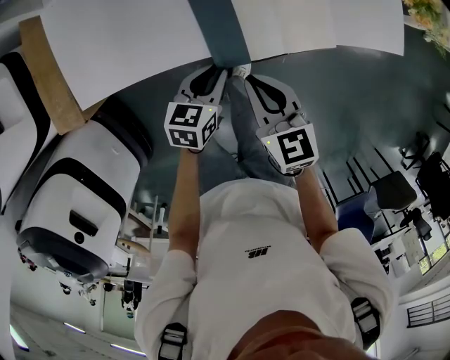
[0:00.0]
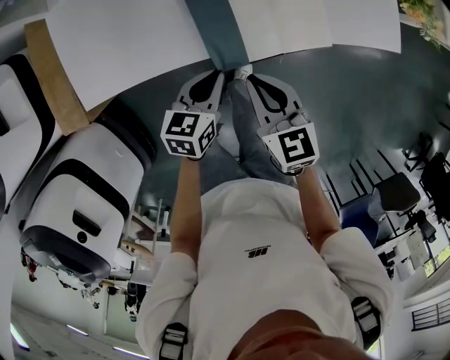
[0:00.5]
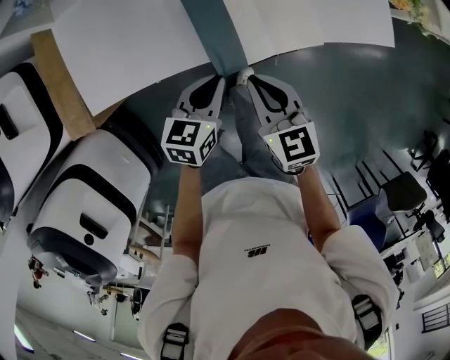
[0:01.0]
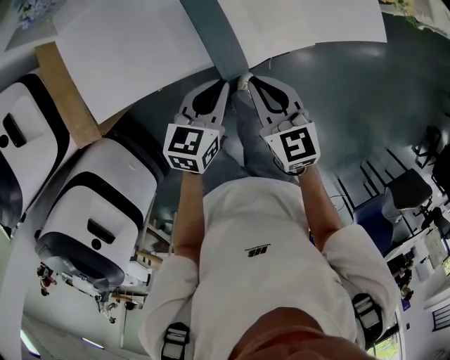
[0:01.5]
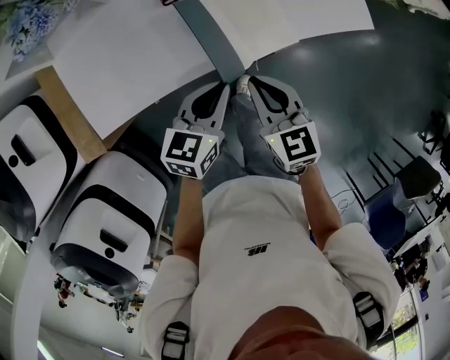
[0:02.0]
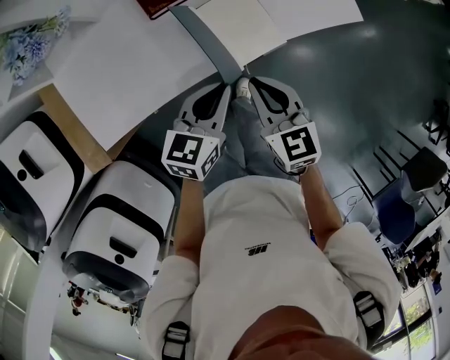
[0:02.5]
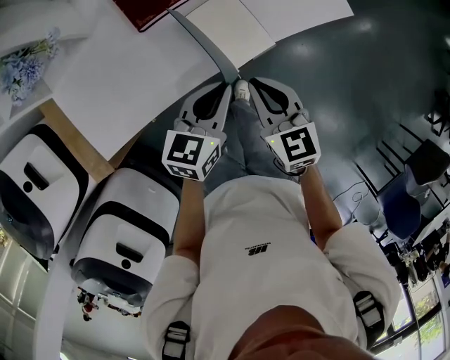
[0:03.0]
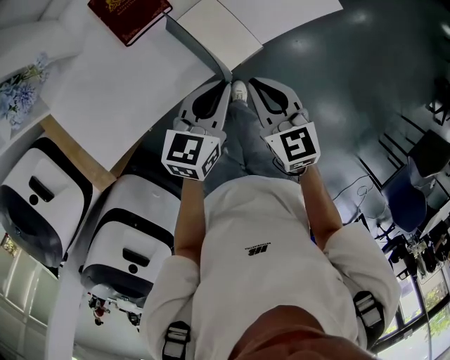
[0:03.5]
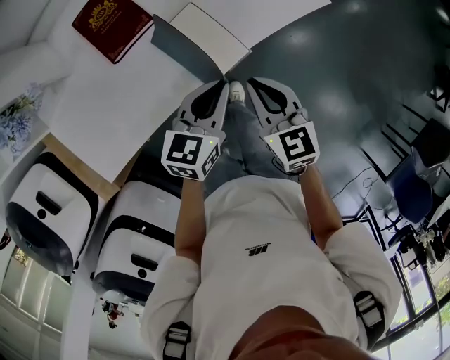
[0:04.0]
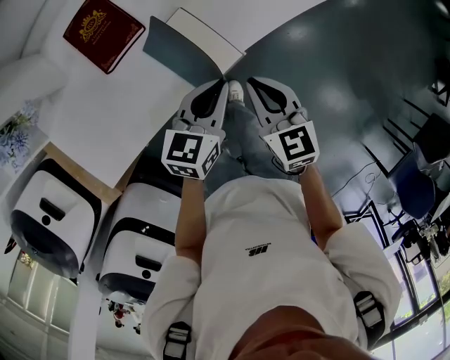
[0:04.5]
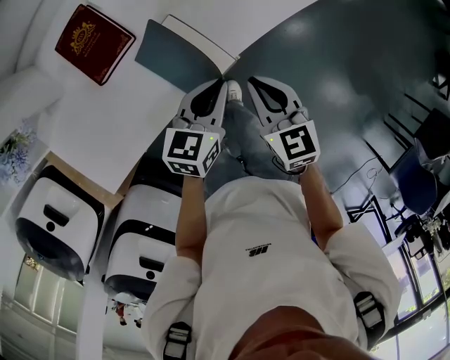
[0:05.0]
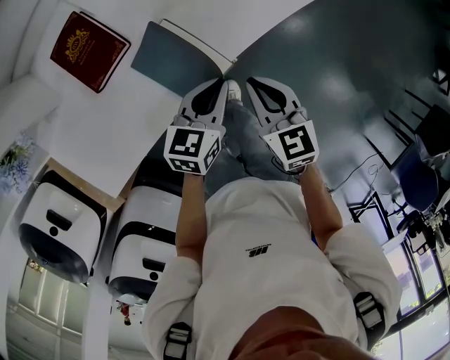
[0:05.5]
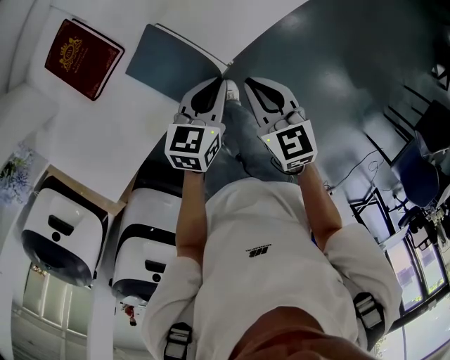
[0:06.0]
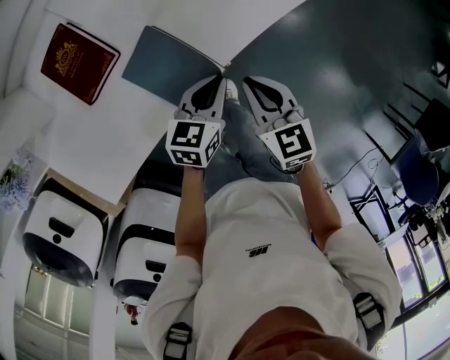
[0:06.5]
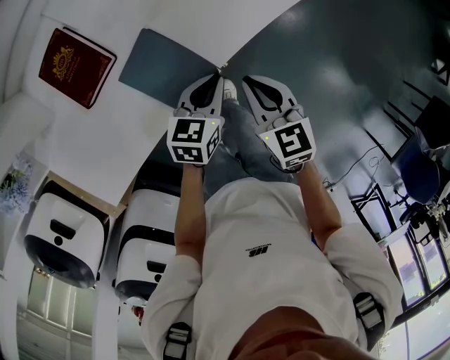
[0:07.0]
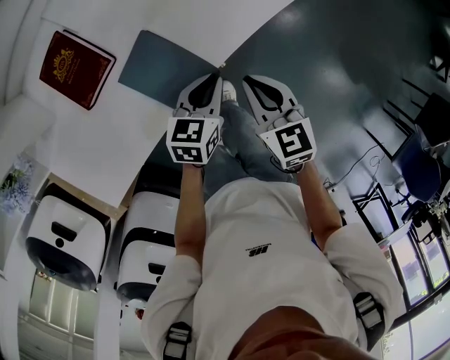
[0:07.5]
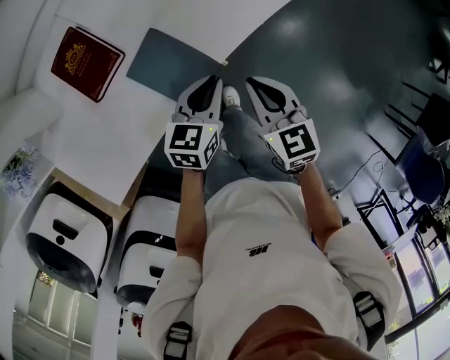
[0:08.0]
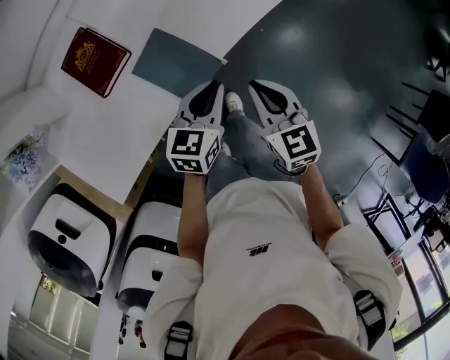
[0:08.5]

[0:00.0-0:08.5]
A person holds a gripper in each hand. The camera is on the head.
0:00.0 to 0:02.0: The left gripper shifts approximately 15 cm upward and to the right, while the right gripper heads to the right and upward, covering approximately 10 cm.
0:02.0 to 0:04.0: Both grippers move to the right and forward, roughly 15 cm.
0:04.0 to 0:06.5: Both grippers travel together downward, to the right and forward, roughly 10 cm.
0:06.5 to 0:08.5: Both grippers move upward, approximately 10 cm.

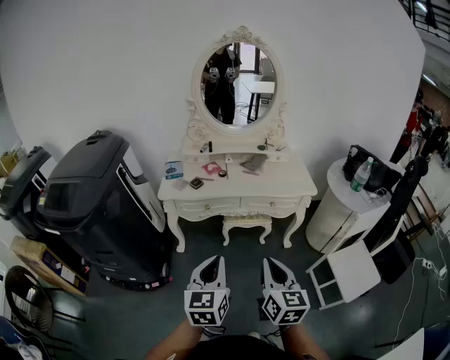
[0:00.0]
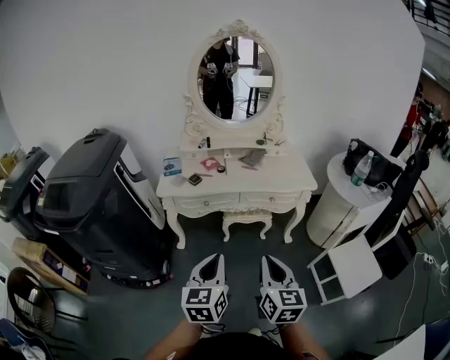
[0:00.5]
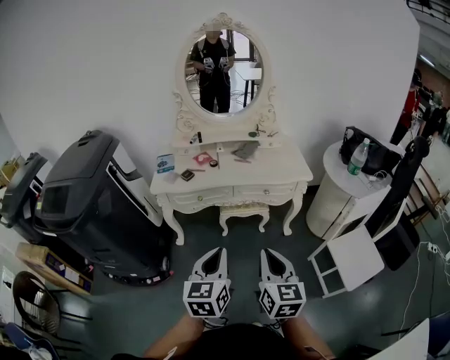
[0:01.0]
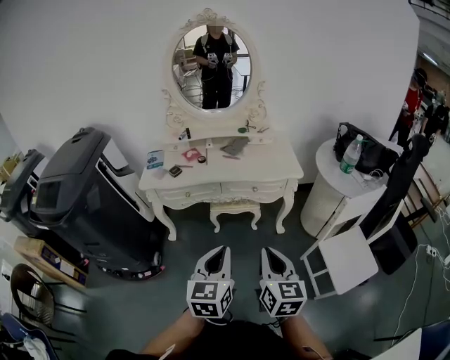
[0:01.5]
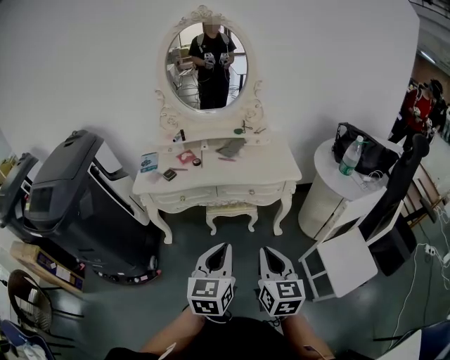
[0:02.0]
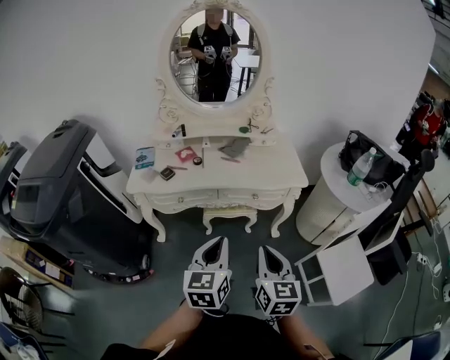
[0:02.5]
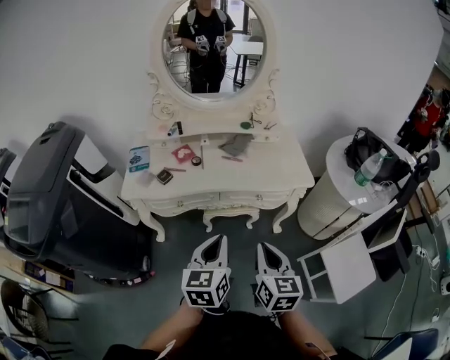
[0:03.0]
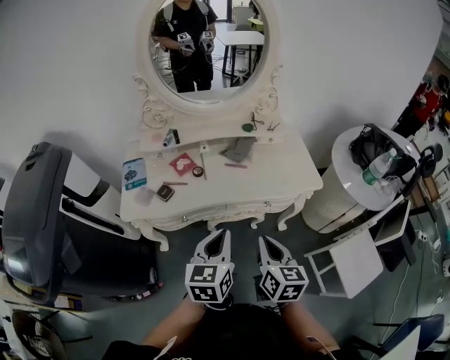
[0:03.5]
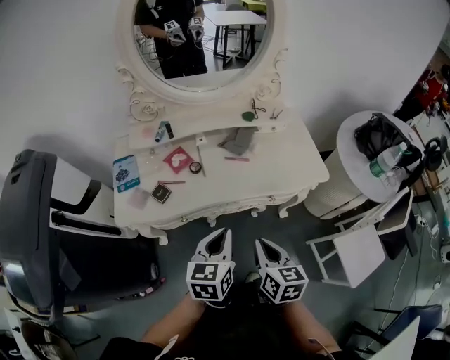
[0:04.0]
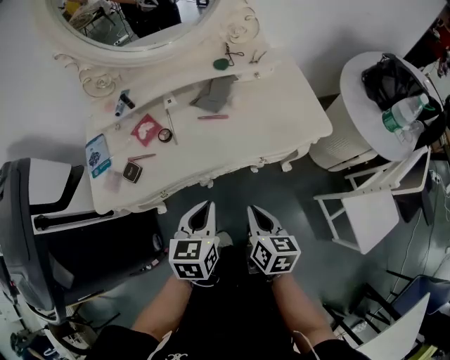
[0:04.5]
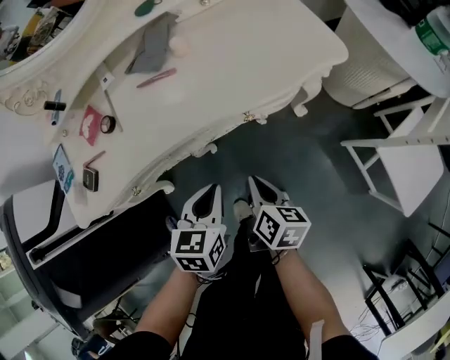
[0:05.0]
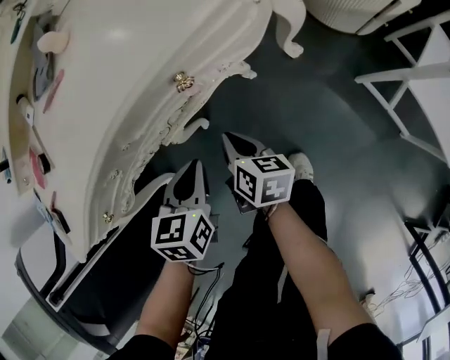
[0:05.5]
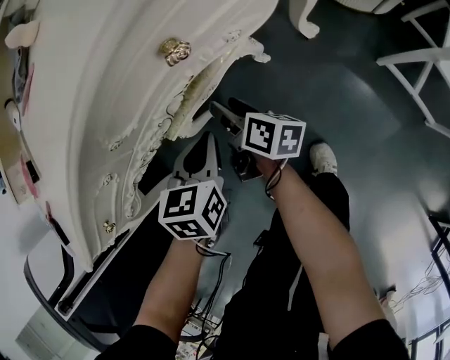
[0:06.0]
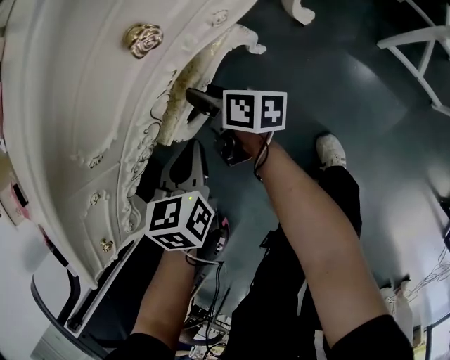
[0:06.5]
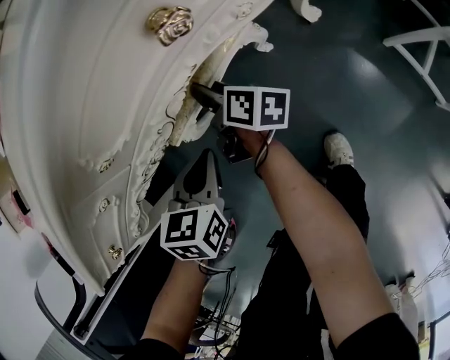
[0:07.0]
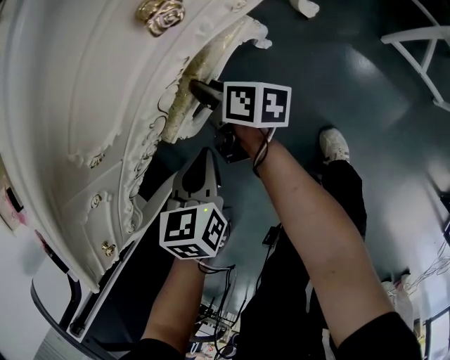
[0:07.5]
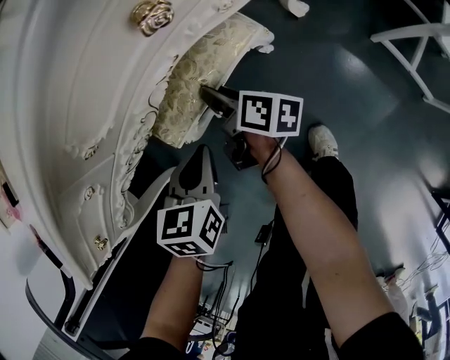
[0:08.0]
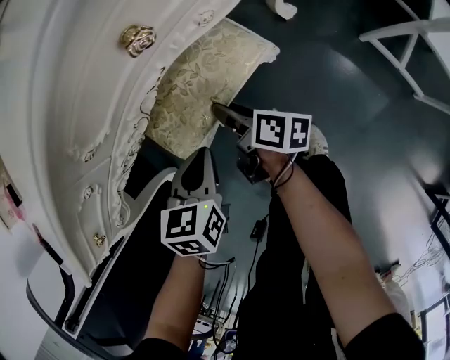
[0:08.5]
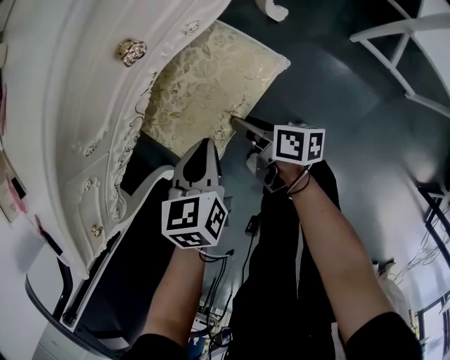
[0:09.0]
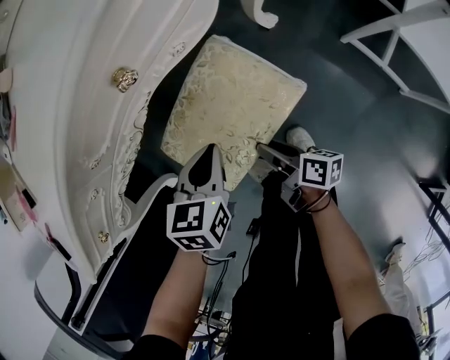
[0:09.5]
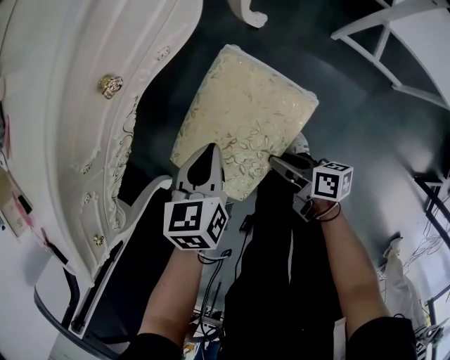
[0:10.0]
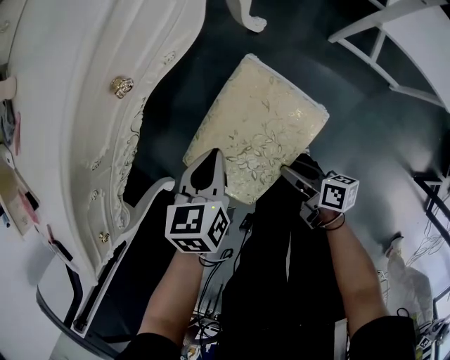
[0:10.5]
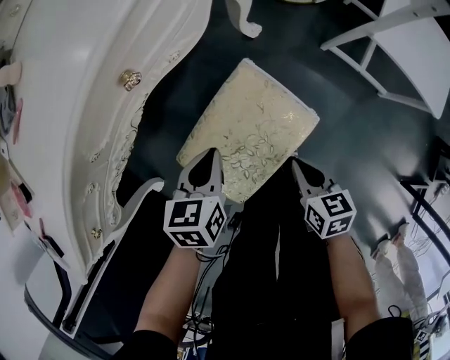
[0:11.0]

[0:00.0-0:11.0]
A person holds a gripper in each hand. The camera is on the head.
0:00.0 to 0:02.0: The left gripper goes some 15 cm to the right; the right gripper goes roughly 15 cm to the right and forward.
0:02.0 to 0:03.5: The two grippers go some 25 cm forward and to the left.
0:03.5 to 0:05.5: Both grippers travel together downward, some 40 cm. The left gripper tips its fingers downward by approximately 30 degrees. The right gripper rolls clockwise, seen from behind, by approximately 40 degrees.
0:05.5 to 0:07.5: The left gripper moves downward and to the left, some 10 cm, while the right gripper heads forward, downward and to the left, covering roughly 15 cm, rotates approximately 20 degrees, and opens.
0:07.5 to 0:09.0: The right gripper moves backward and to the right, some 20 cm, while the left gripper is displaced to the right by some 10 cm.
0:09.0 to 0:11.0: The right gripper is displaced to the right, backward and upward by some 20 cm, rotates approximately 50 degrees, and closes. The left gripper heads to the right, covering some 5 cm.

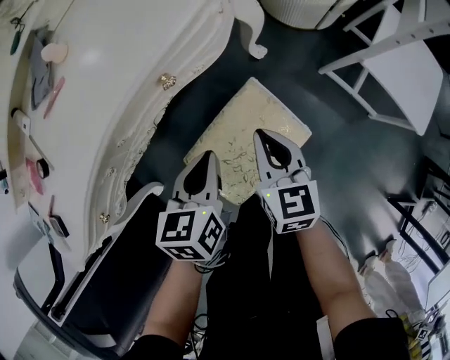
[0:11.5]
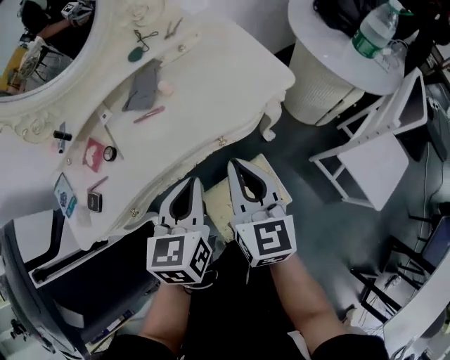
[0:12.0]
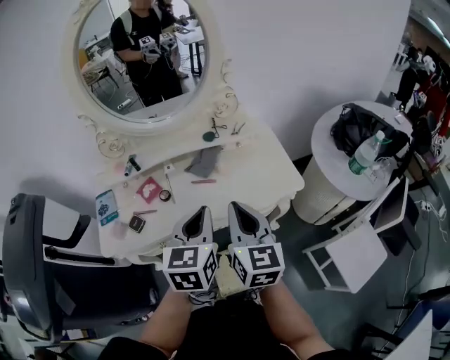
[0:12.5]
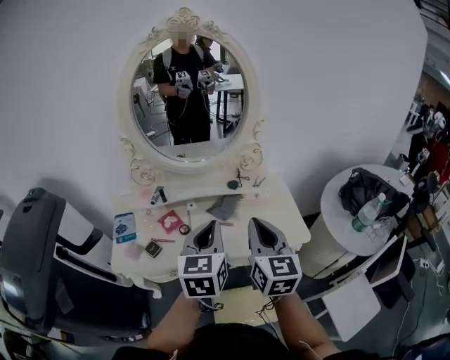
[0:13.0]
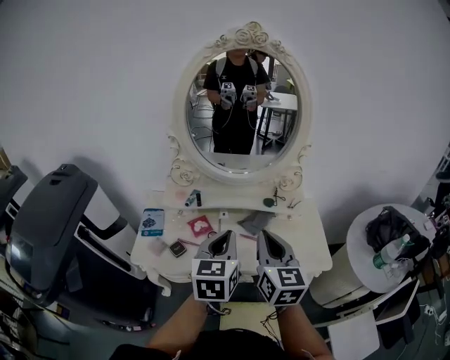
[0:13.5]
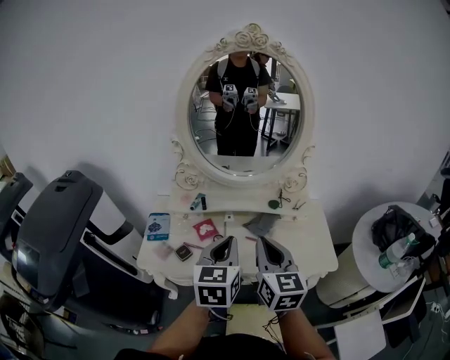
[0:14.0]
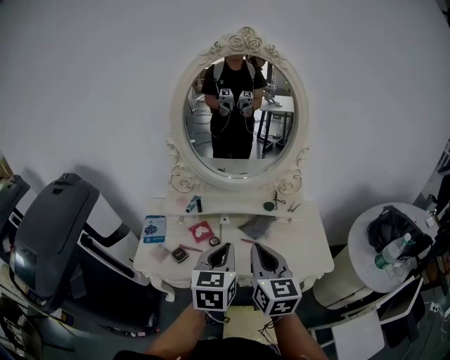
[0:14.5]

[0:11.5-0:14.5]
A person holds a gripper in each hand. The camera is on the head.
0:11.5 to 0:13.0: The grippers both shift upward by approximately 50 cm. The right gripper swivels some 40 degrees. Meanwhile the left gripper tilts its fingers some 30 degrees upward.
0:13.0 to 0:14.5: The grippers both shift to the left by approximately 10 cm.

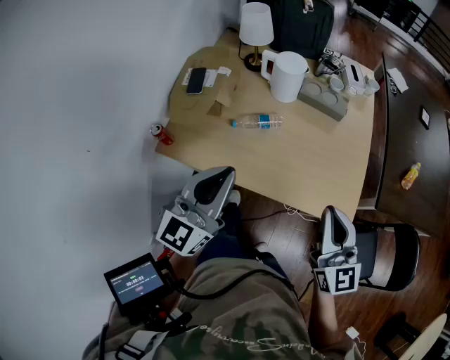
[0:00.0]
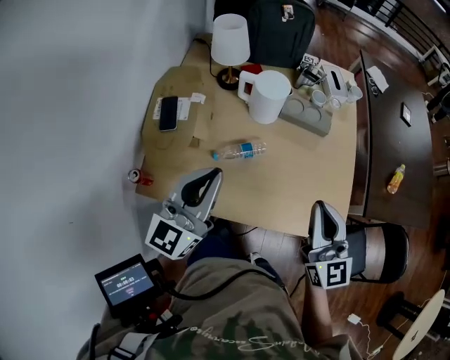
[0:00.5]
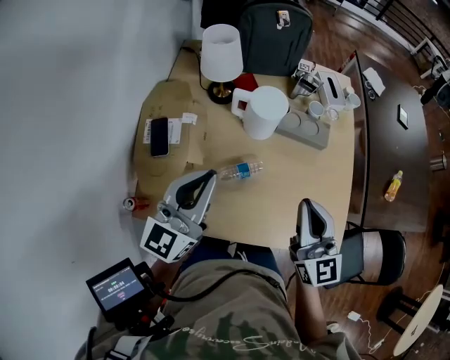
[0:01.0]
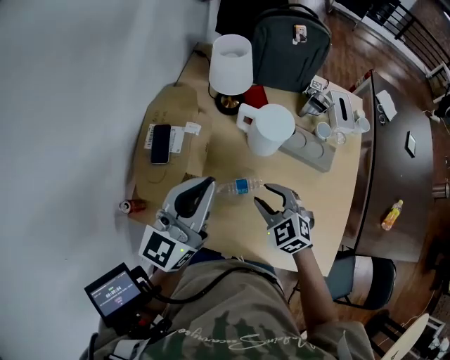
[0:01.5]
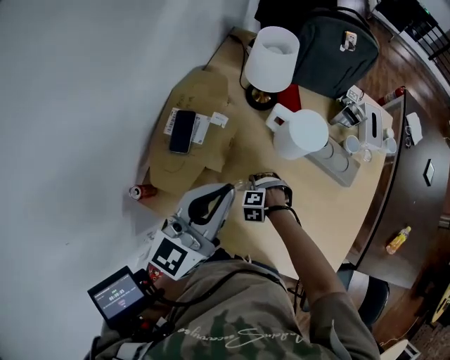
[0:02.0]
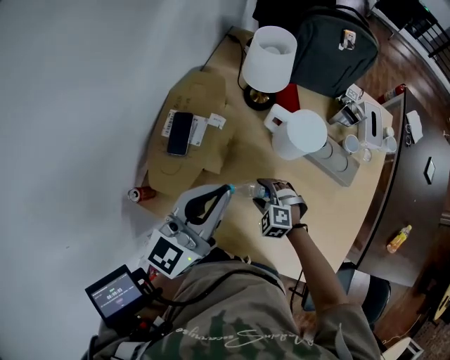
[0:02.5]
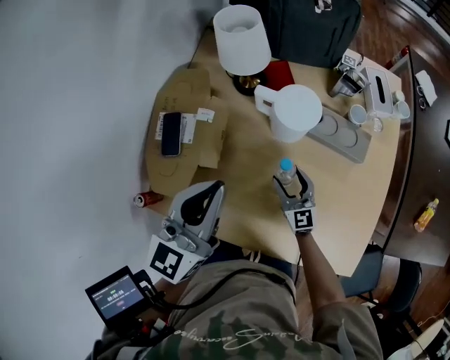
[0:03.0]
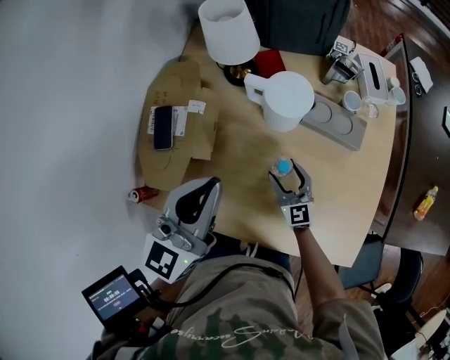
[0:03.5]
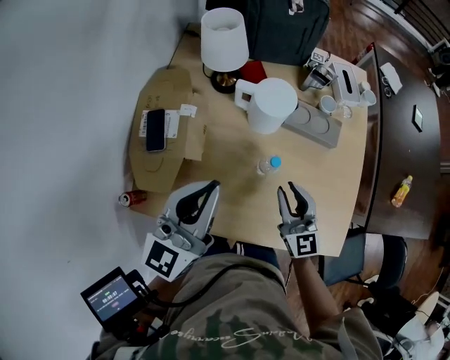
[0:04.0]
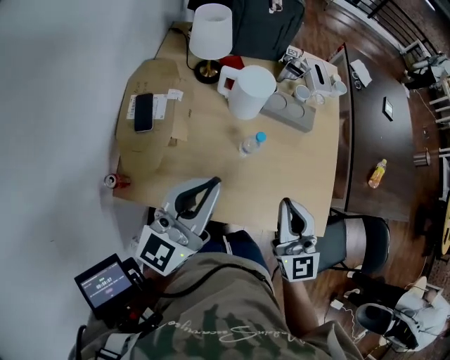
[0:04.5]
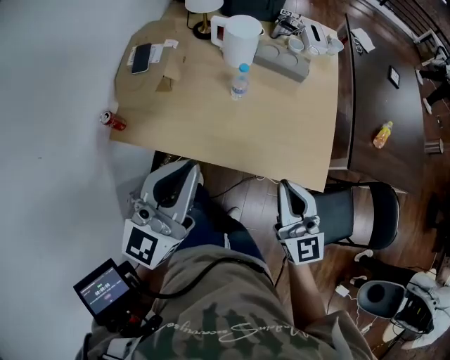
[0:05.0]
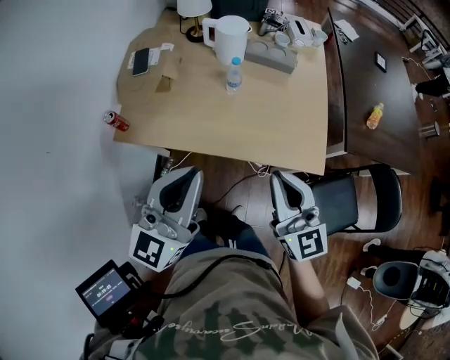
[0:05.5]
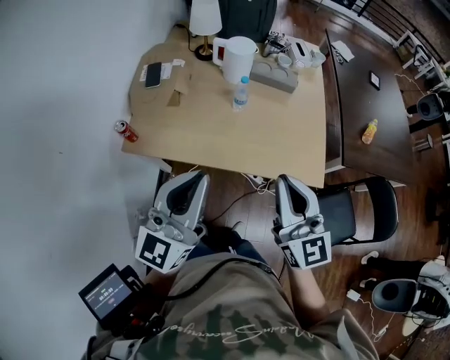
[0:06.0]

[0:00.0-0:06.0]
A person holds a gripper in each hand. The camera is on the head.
0:00.0 to 0:02.0: The left gripper ends up about 30 cm from where it was, while the right gripper heads downward, covering roughly 40 cm, tips its fingers downward by some 80 degrees, and opens its fingers.
0:02.0 to 0:04.0: The left gripper ends up some 5 cm from where it was; the right gripper travels upward by approximately 30 cm, angles its fingers upward, by some 80 degrees, and closes.
0:04.0 to 0:06.0: The left gripper travels backward by approximately 35 cm. Meanwhile the right gripper travels backward and upward by about 40 cm, and closes.
